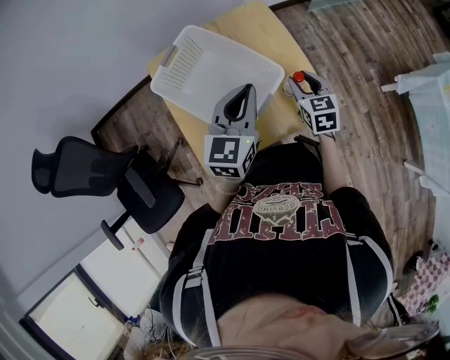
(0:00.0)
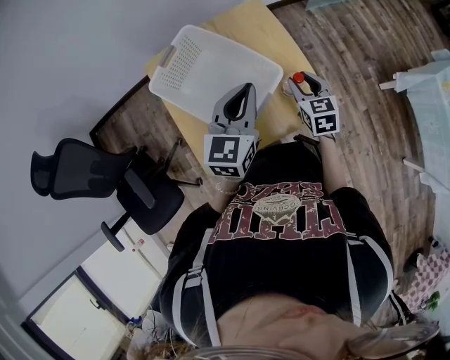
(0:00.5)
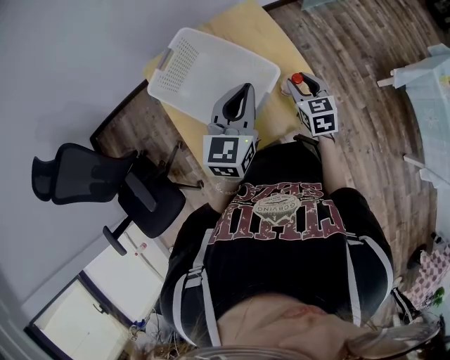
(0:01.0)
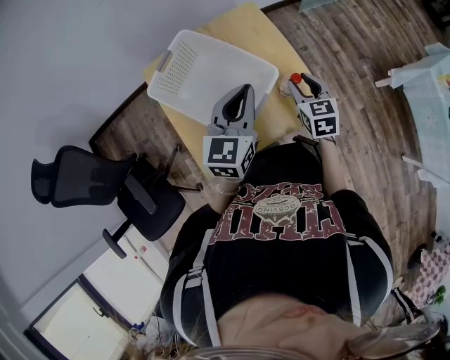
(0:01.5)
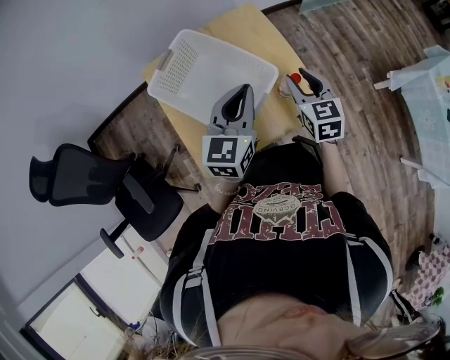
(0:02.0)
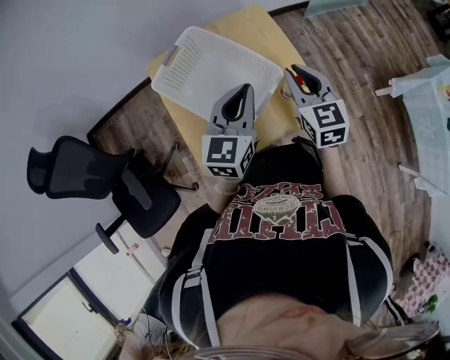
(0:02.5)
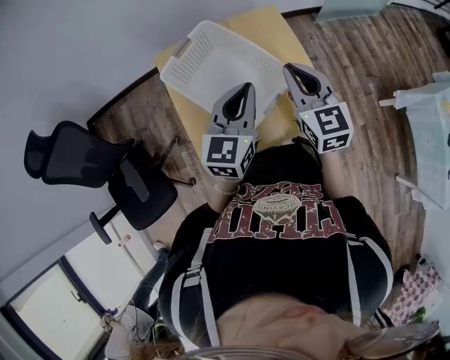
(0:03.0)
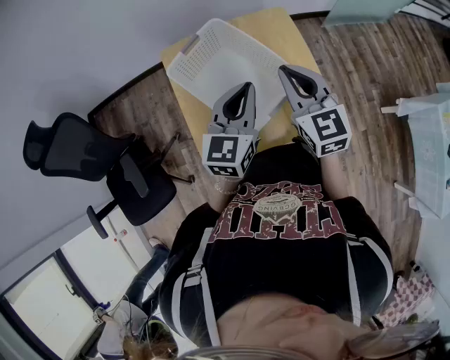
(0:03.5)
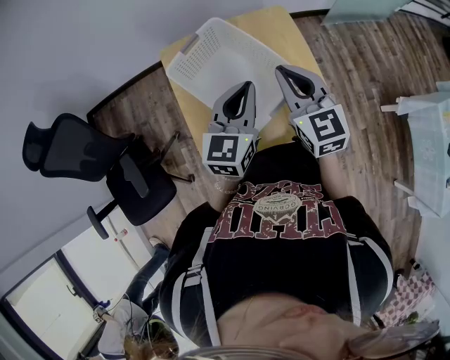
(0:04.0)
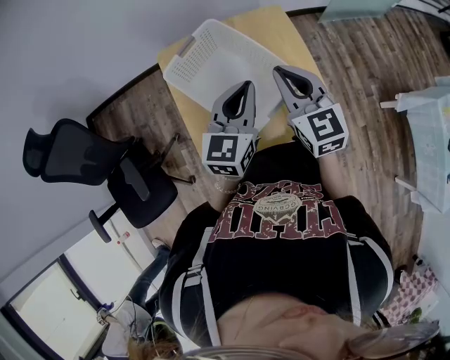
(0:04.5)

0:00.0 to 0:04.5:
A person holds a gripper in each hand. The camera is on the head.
0:00.0 to 0:02.0: The right gripper heads upward, covering roughly 5 cm.
0:02.0 to 0:04.5: The right gripper moves to the left and upward, approximately 15 cm, turns by about 20 degrees, and closes up. Meanwhile the left gripper shifts about 5 cm to the left.

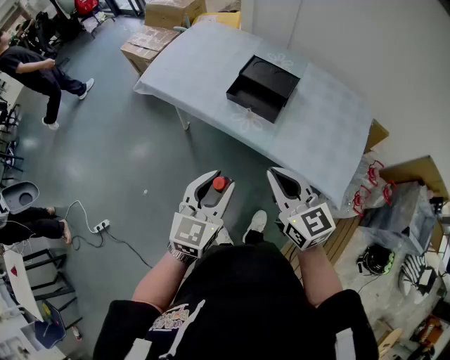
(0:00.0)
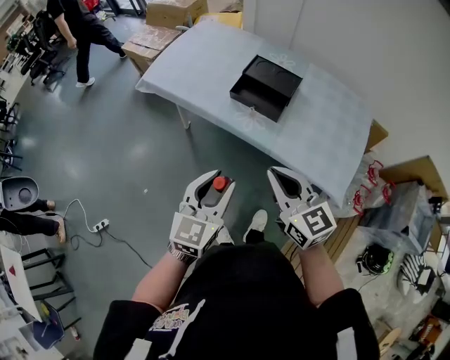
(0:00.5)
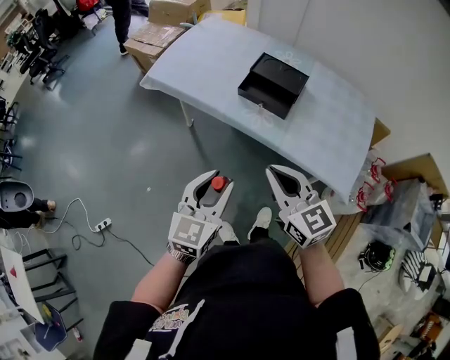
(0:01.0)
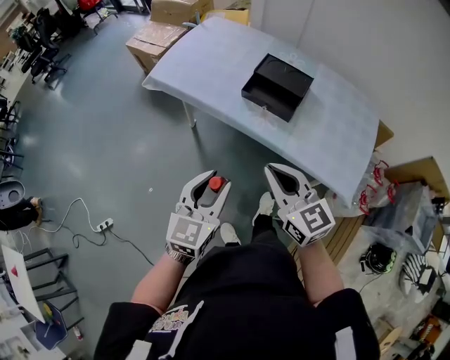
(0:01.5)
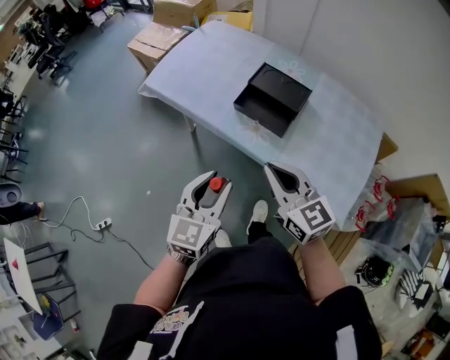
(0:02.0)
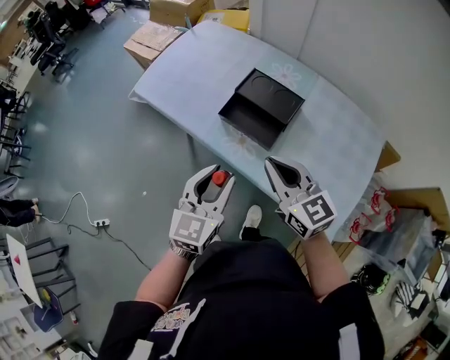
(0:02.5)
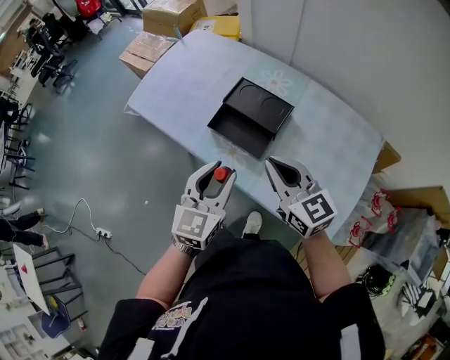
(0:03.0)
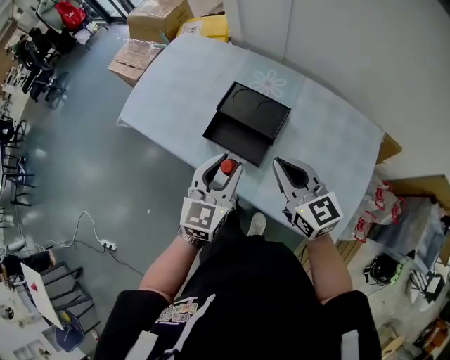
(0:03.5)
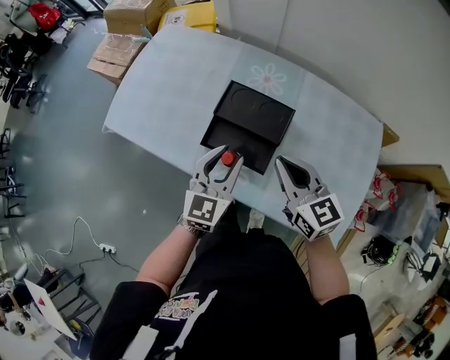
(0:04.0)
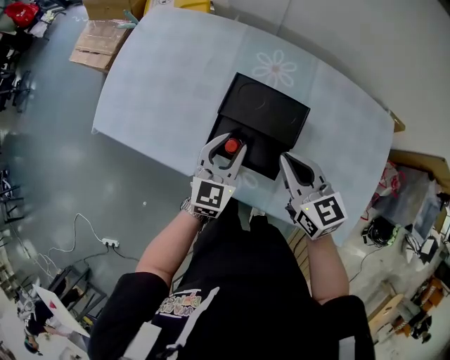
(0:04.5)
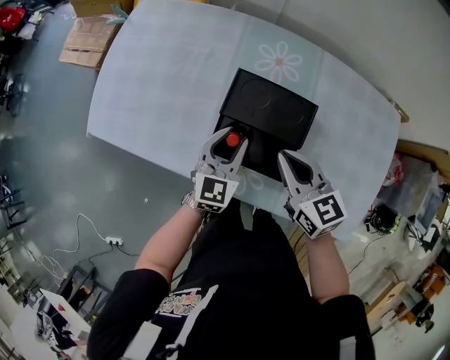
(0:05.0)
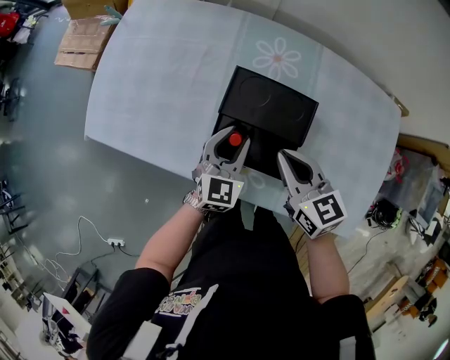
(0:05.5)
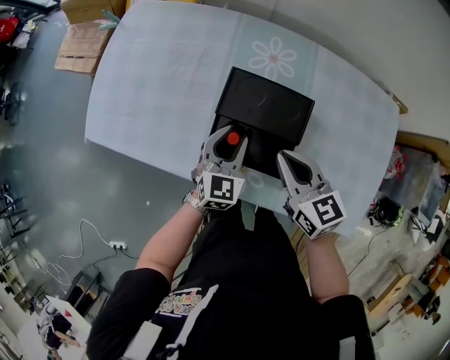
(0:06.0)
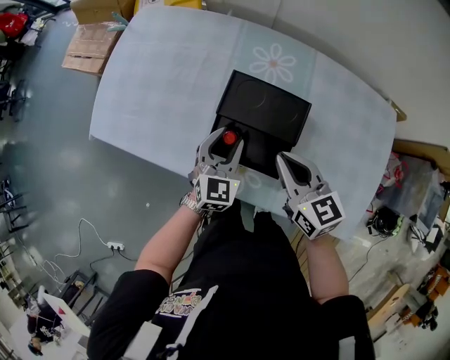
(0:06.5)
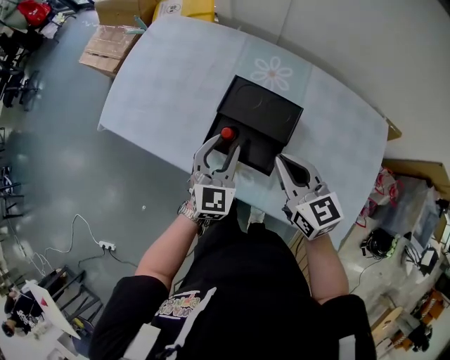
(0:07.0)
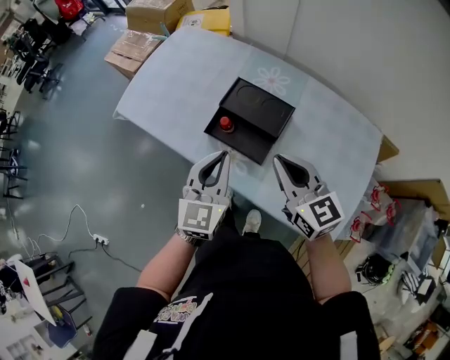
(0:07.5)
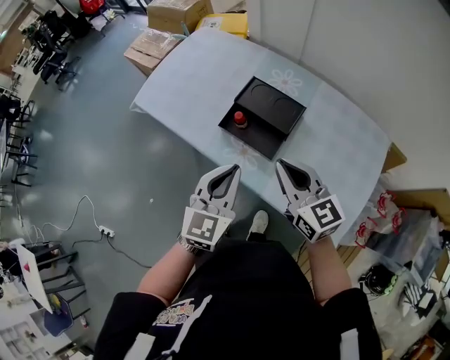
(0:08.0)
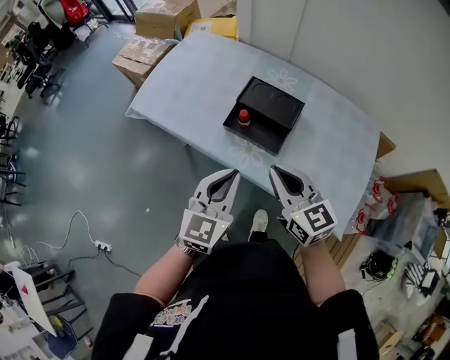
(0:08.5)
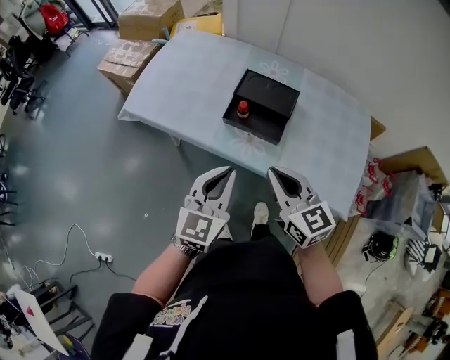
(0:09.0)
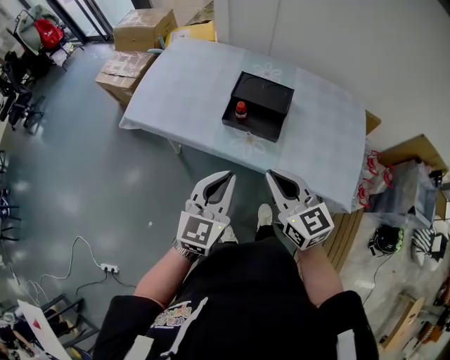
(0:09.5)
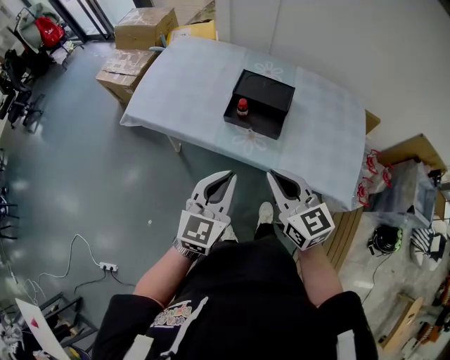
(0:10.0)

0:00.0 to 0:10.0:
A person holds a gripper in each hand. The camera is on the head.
0:00.0 to 0:02.0: Both grippers travel together forward, some 10 cm.
0:02.0 to 0:04.0: Both grippers travel together forward and to the right, some 30 cm.
0:04.0 to 0:06.0: The left gripper travels downward and forward by roughly 20 cm, while the right gripper goes about 10 cm downward and forward.
0:06.0 to 0:08.0: The right gripper is displaced backward and upward by some 20 cm, and swivels some 20 degrees; the left gripper travels backward and upward by roughly 30 cm, swivels approximately 20 degrees, and closes up.
0:08.0 to 0:10.0: The left gripper heads to the left and backward, covering about 15 cm. Meanwhile the right gripper goes roughly 20 cm backward and to the left.

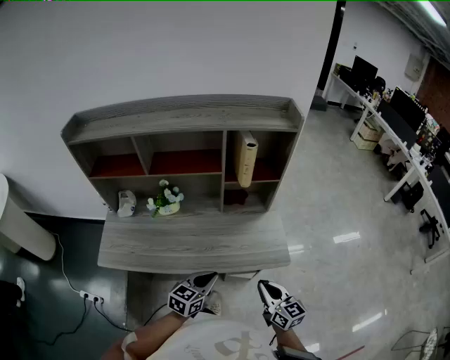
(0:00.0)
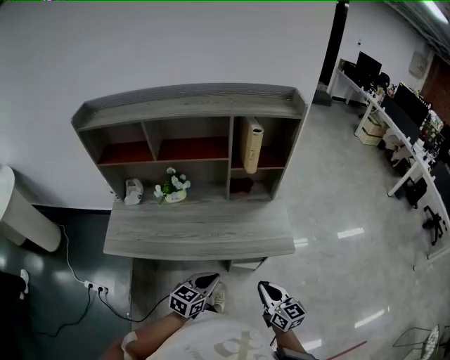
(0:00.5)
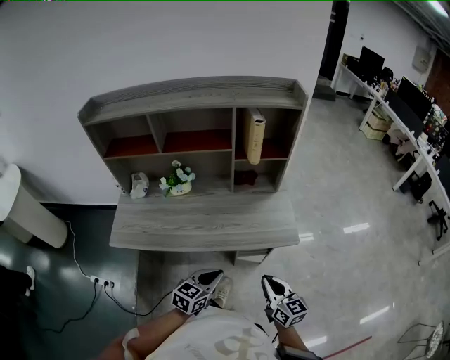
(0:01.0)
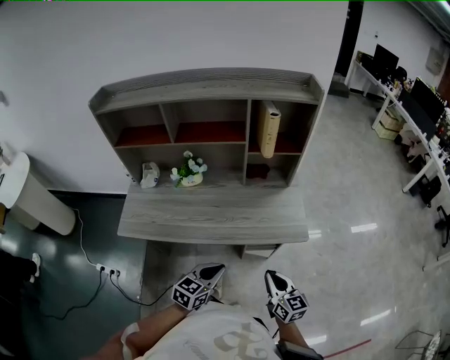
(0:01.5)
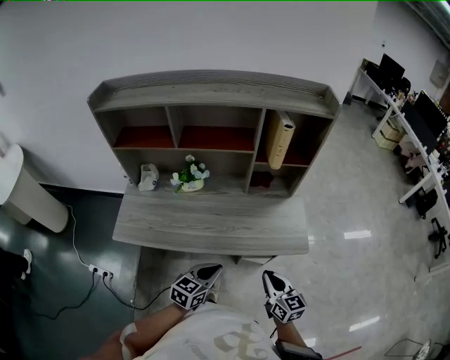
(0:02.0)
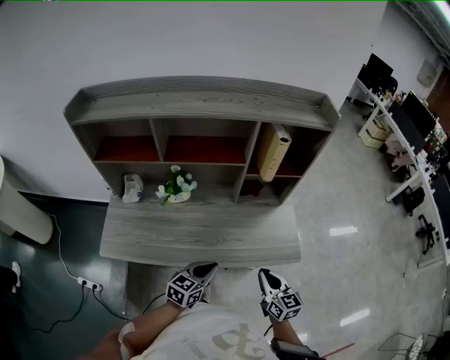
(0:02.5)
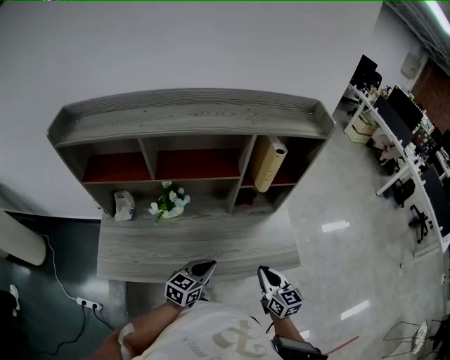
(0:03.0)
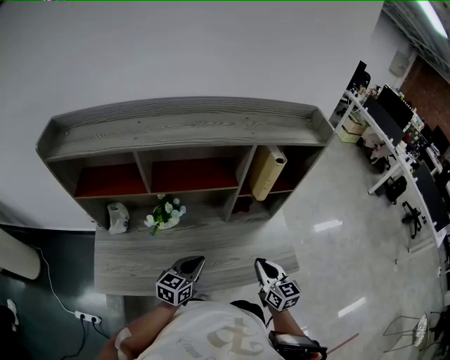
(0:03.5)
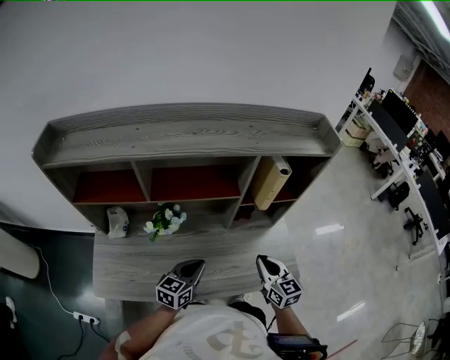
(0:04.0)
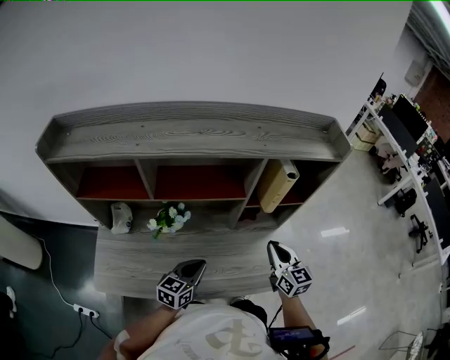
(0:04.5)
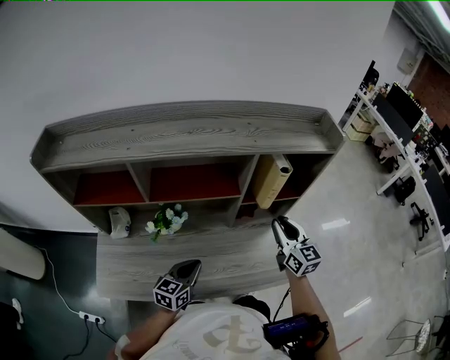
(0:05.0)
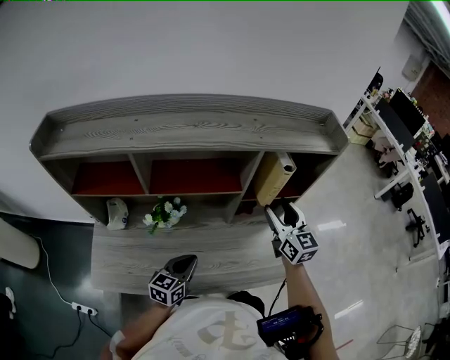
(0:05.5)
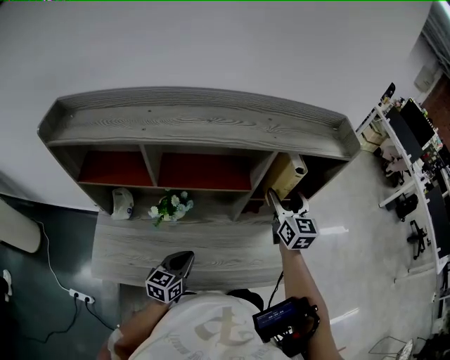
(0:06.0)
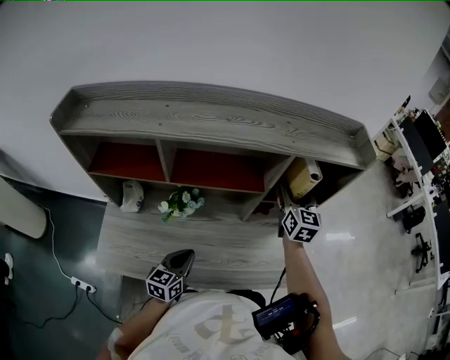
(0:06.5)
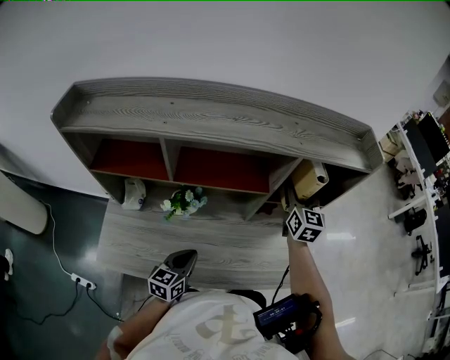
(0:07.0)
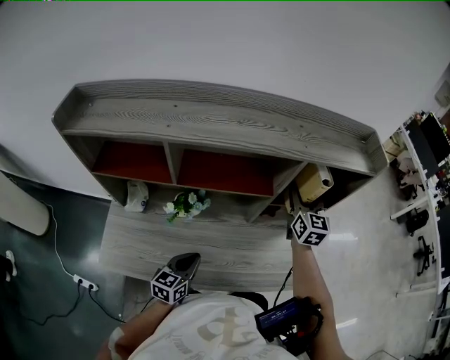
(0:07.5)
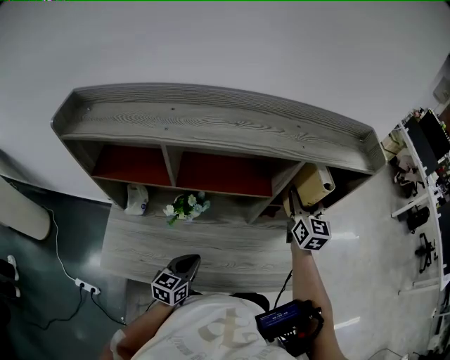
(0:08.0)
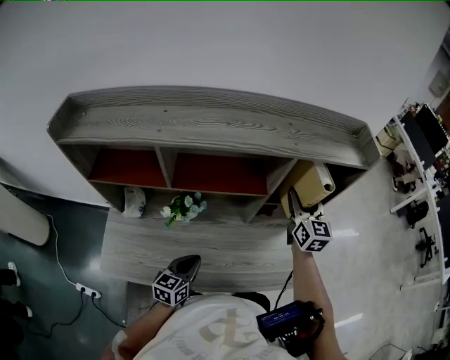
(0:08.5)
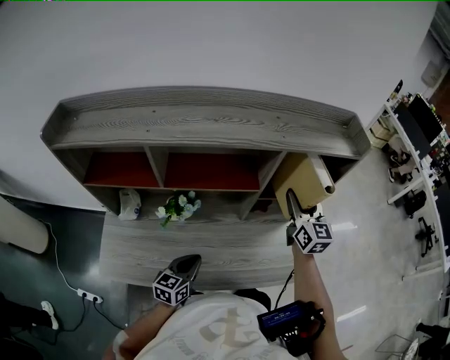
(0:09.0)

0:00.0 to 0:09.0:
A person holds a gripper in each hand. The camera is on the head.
0:00.0 to 0:02.0: The two grippers go some 5 cm to the left. The right gripper moves approximately 10 cm backward and comes back.
0:02.0 to 0:04.5: The right gripper travels forward by about 30 cm, while the left gripper is displaced forward and to the left by about 25 cm.
0:04.5 to 0:07.0: The right gripper shifts some 20 cm forward and upward, and opens its fingers. The left gripper shifts about 5 cm to the left.
0:07.0 to 0:09.0: The right gripper changes place by some 5 cm.

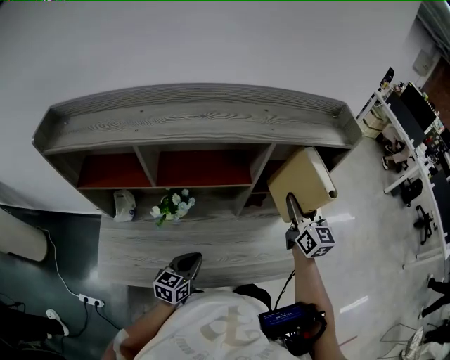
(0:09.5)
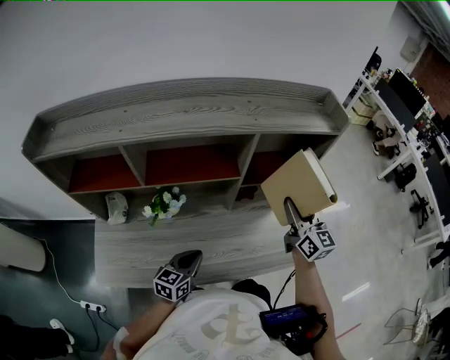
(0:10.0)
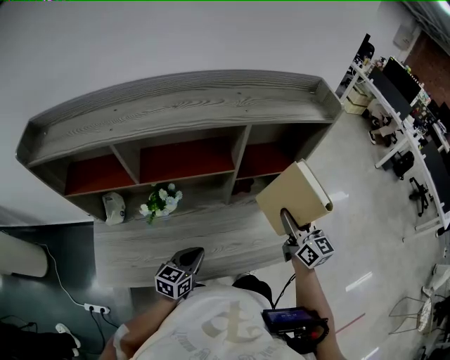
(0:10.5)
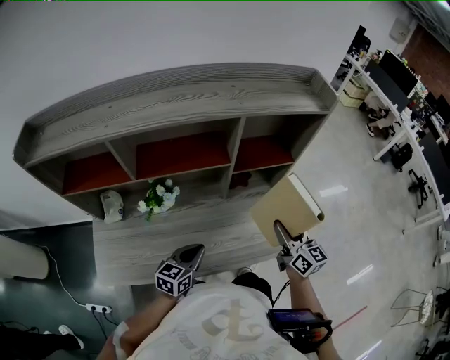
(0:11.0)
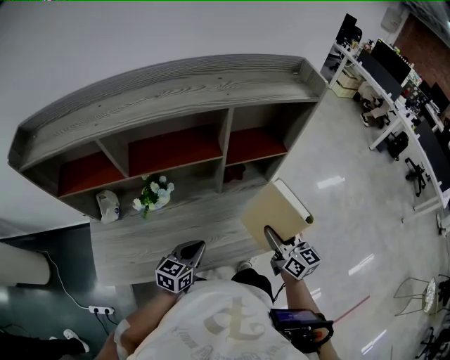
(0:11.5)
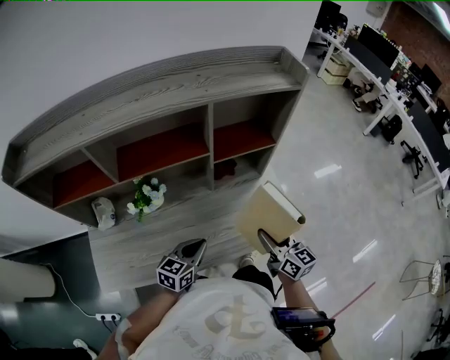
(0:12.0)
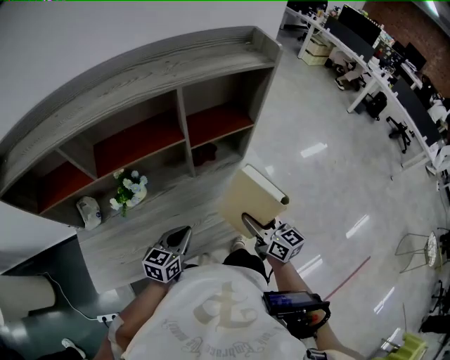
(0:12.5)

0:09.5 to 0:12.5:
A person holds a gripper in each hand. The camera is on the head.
0:09.5 to 0:11.0: The right gripper travels backward and downward by approximately 15 cm.
0:11.0 to 0:12.5: The right gripper travels downward by roughly 5 cm.
